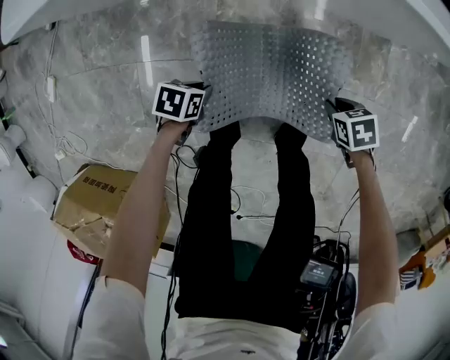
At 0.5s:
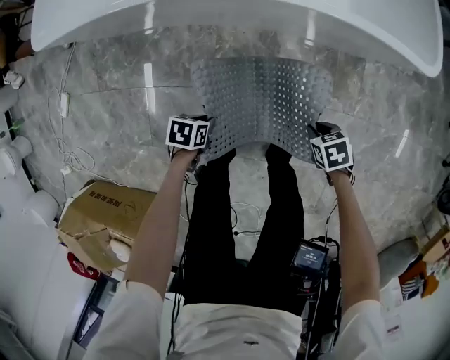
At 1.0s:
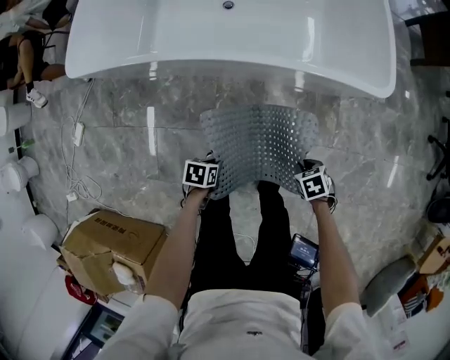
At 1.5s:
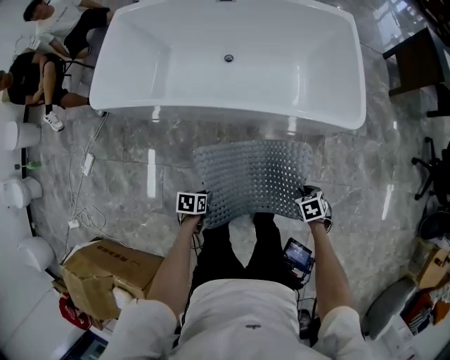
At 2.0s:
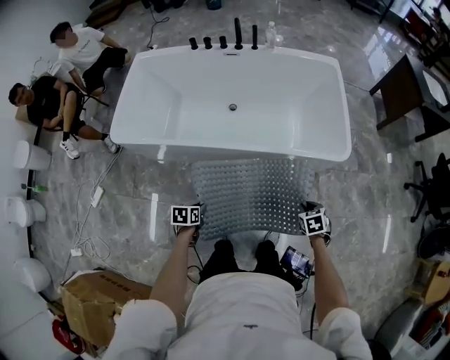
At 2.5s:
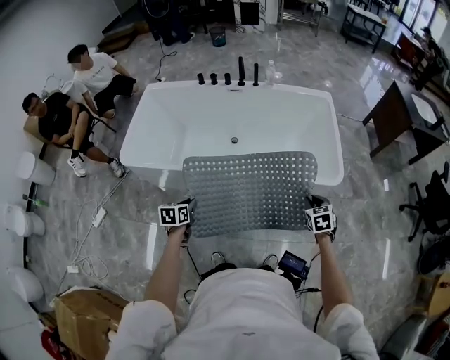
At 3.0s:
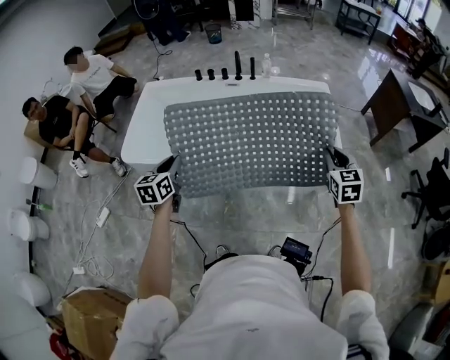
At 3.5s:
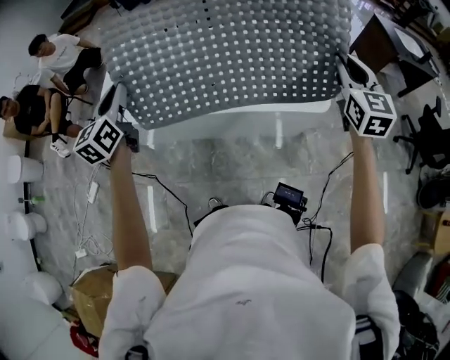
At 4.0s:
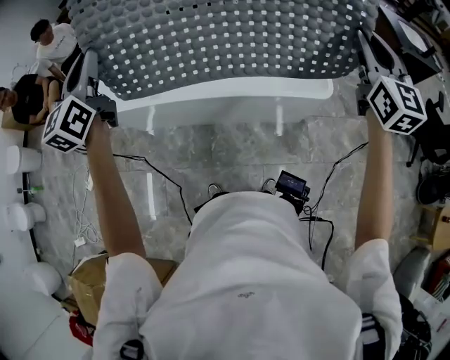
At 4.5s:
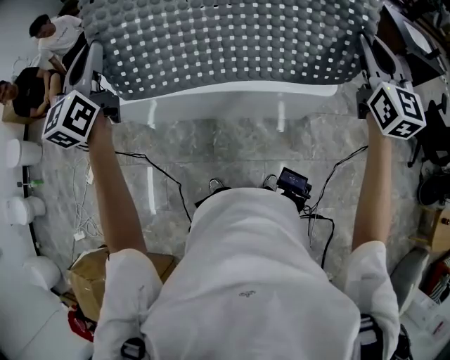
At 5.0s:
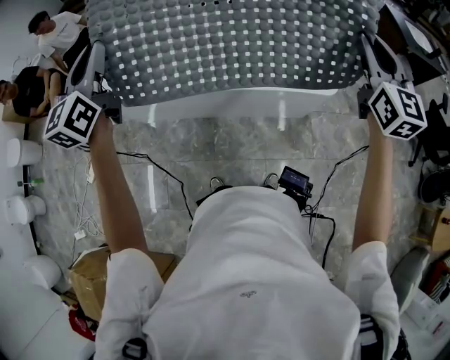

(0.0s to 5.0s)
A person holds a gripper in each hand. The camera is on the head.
0.0s - 2.5s: Both grippers move upward, roughly 50 cm. The left gripper turns by about 40 degrees, while the right gripper changes its angle by some 40 degrees.
2.5s - 5.0s: Both grippers travel together upward, roughly 40 cm. The right gripper angles its fingers upward, by some 50 degrees; the left gripper points its fingers approximately 50 degrees further upward.

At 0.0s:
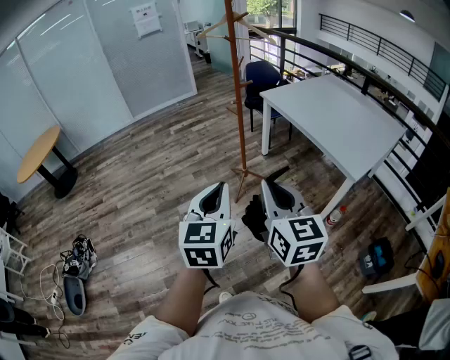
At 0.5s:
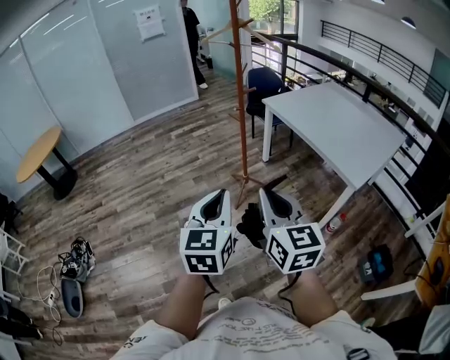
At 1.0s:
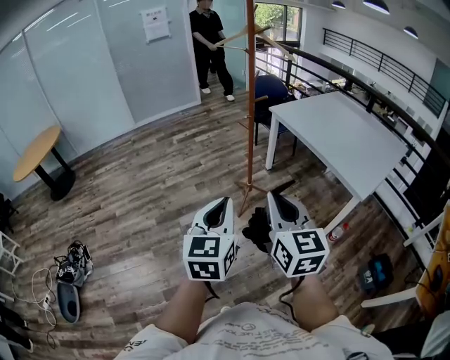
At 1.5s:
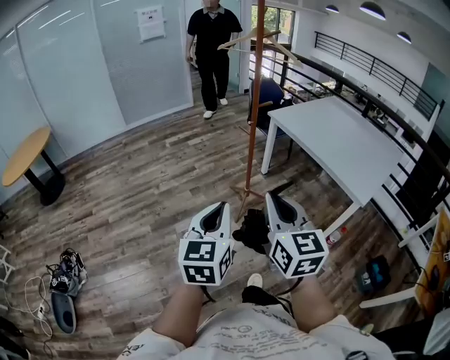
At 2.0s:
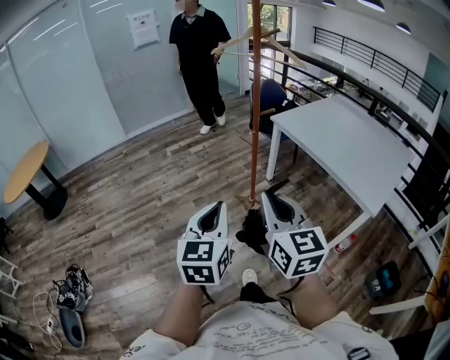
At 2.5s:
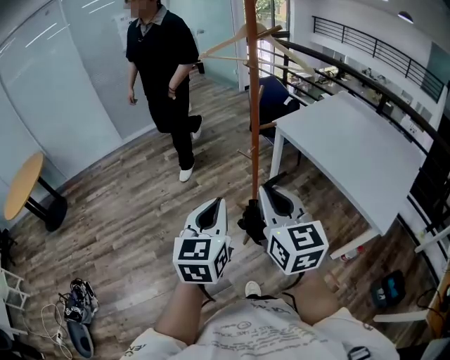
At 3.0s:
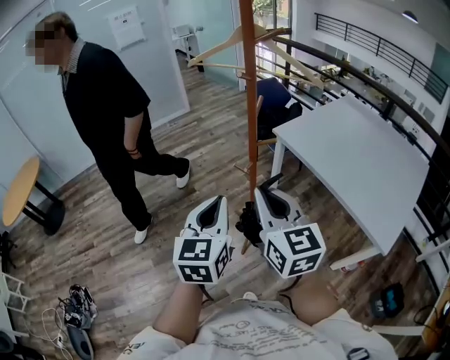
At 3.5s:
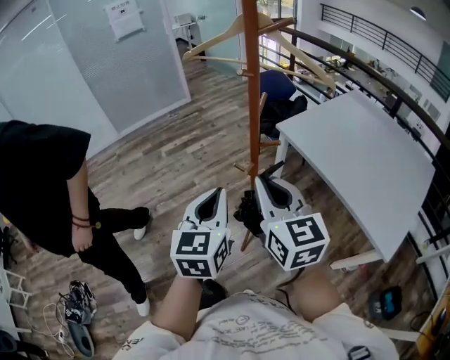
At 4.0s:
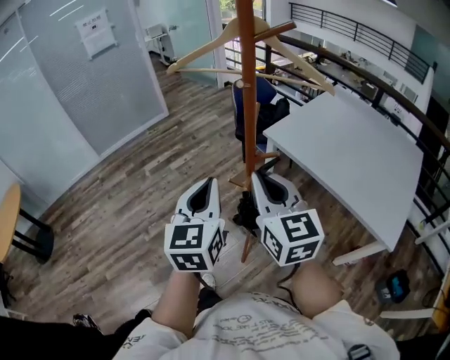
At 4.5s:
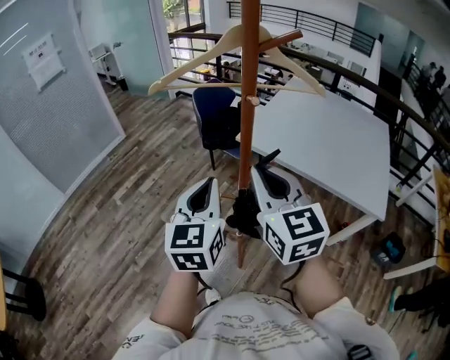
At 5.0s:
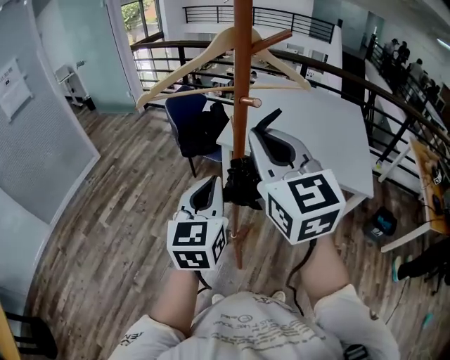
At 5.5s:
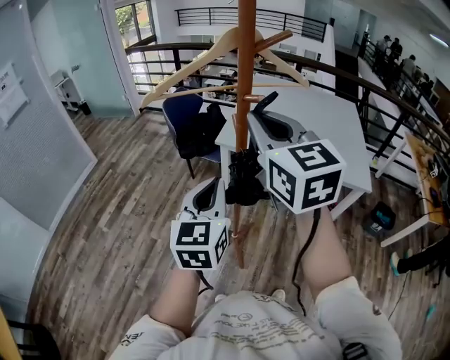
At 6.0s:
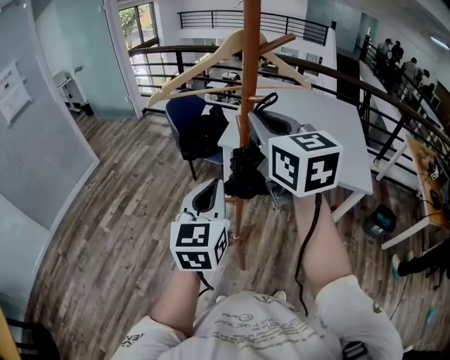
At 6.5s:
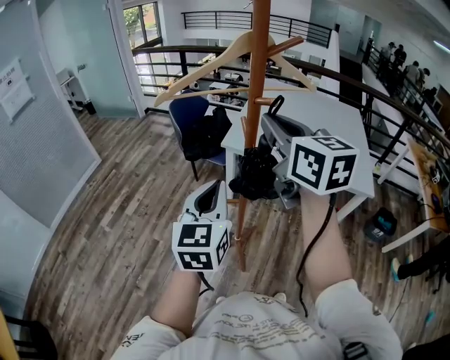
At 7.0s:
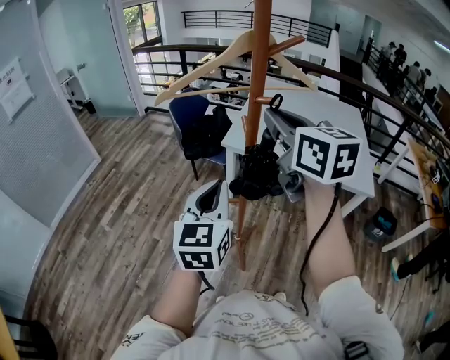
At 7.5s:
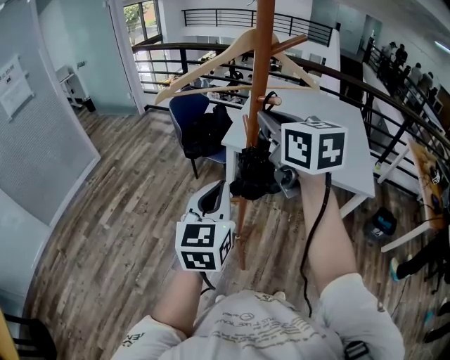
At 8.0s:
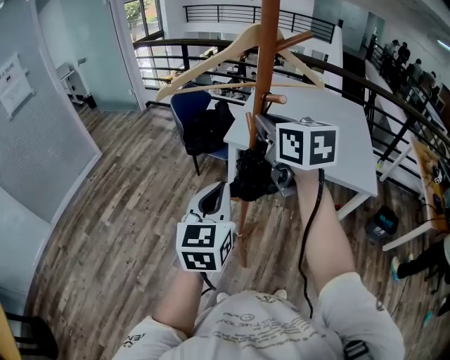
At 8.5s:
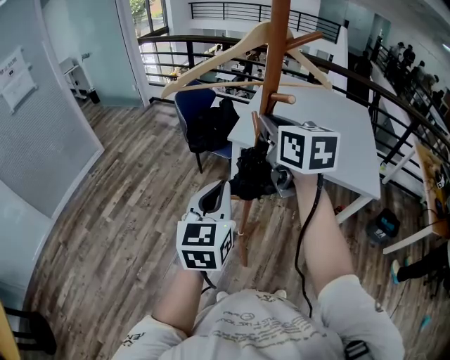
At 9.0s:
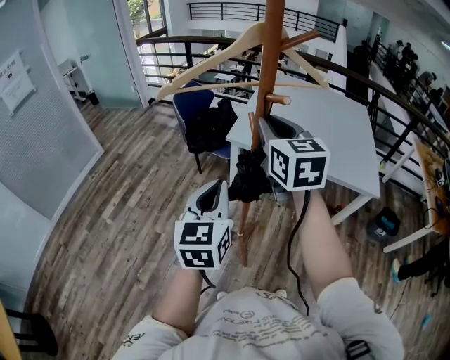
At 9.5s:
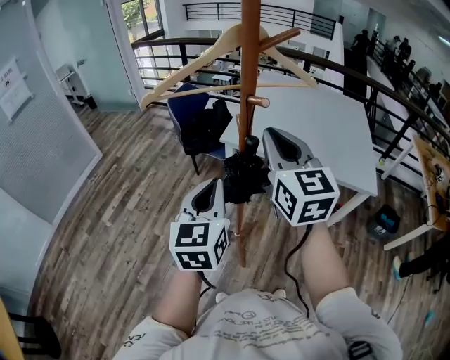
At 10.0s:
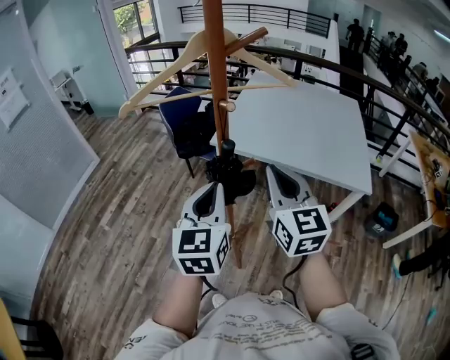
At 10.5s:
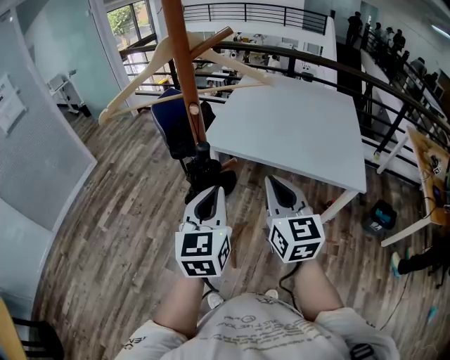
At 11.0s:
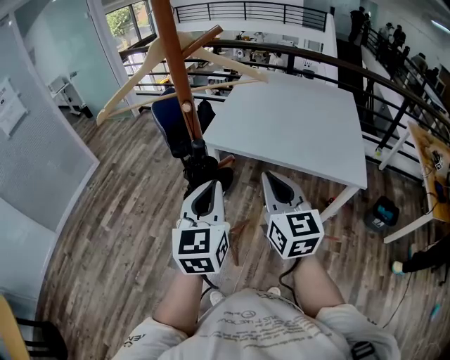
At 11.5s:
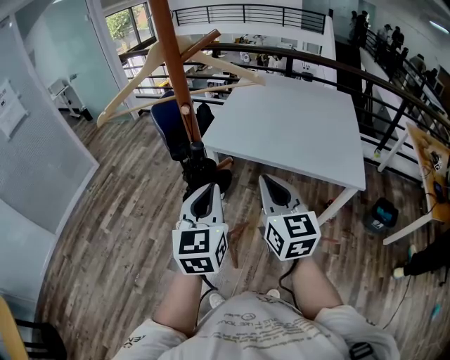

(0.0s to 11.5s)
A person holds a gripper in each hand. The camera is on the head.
0.0s - 2.0s: The grippers both shift forward and to the left by some 25 cm.
2.0s - 4.0s: Both grippers are carried forward, roughly 40 cm.
4.0s - 6.0s: The right gripper shifts by about 15 cm, and swivels about 30 degrees. The left gripper moves approximately 10 cm, and turns by about 30 degrees.
6.0s - 7.5s: The grippers stay close to where they were, moving slightly.
7.5s - 9.5s: The right gripper ends up roughly 5 cm from where it was.
9.5s - 11.5s: The left gripper heads to the right, covering roughly 10 cm; the right gripper travels to the right, downward and backward by some 15 cm.

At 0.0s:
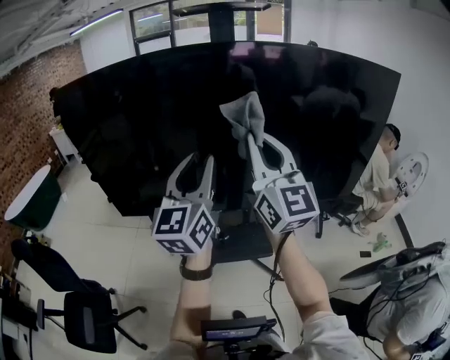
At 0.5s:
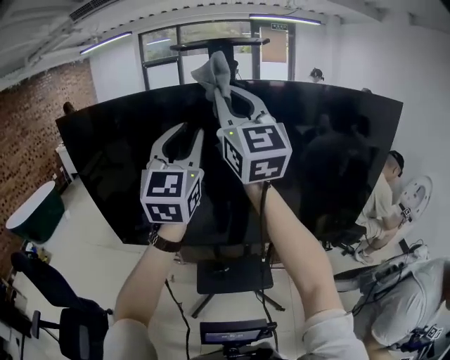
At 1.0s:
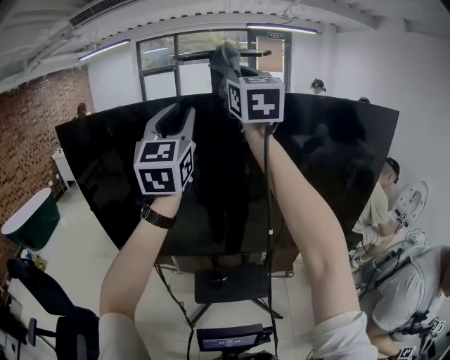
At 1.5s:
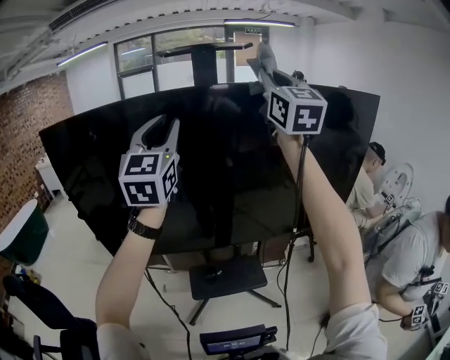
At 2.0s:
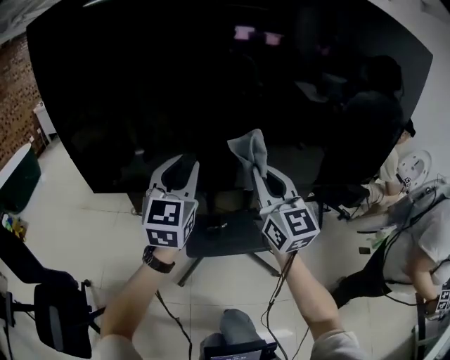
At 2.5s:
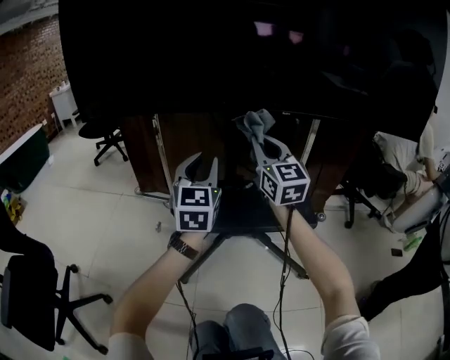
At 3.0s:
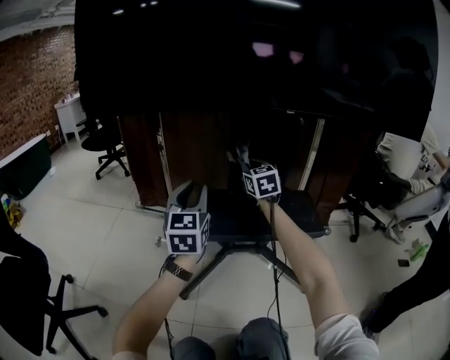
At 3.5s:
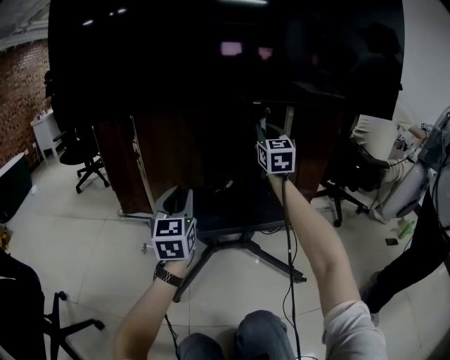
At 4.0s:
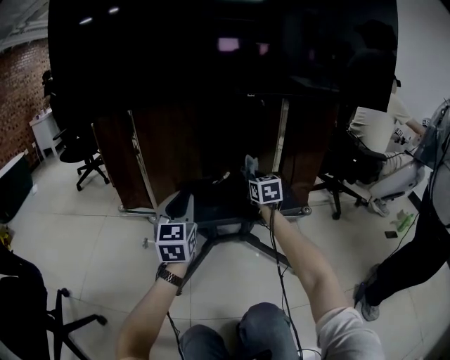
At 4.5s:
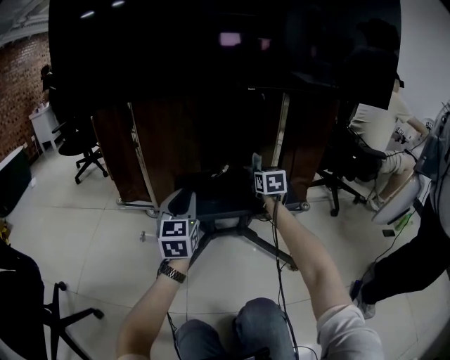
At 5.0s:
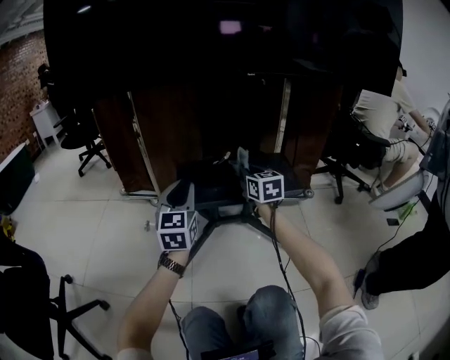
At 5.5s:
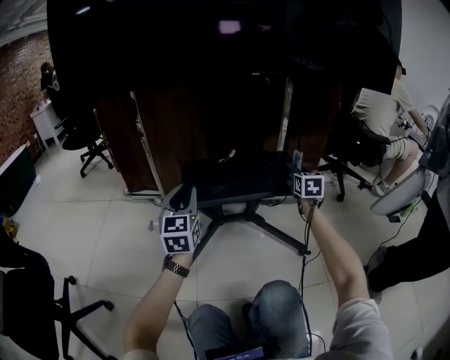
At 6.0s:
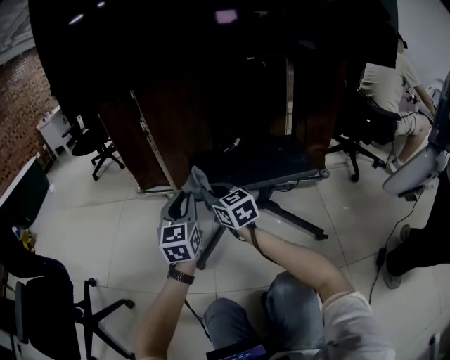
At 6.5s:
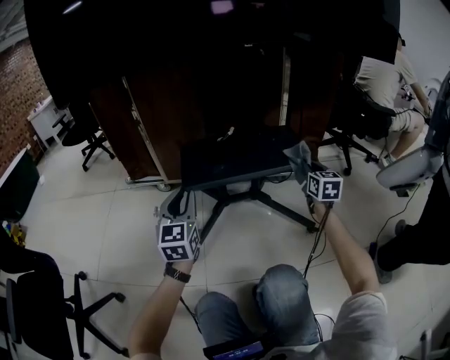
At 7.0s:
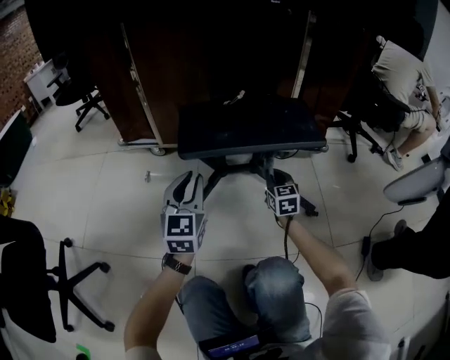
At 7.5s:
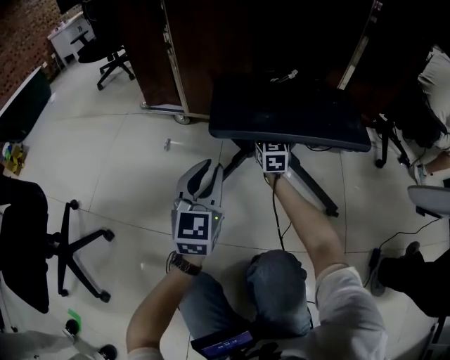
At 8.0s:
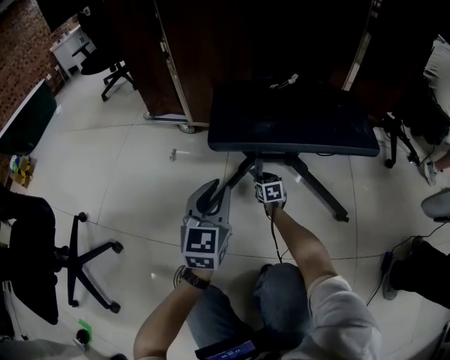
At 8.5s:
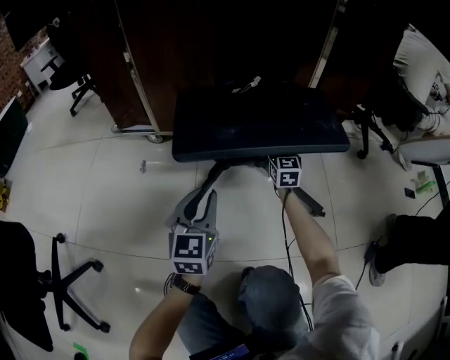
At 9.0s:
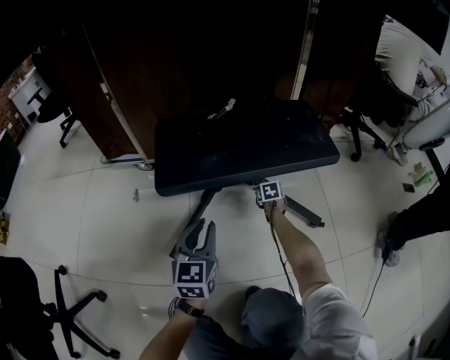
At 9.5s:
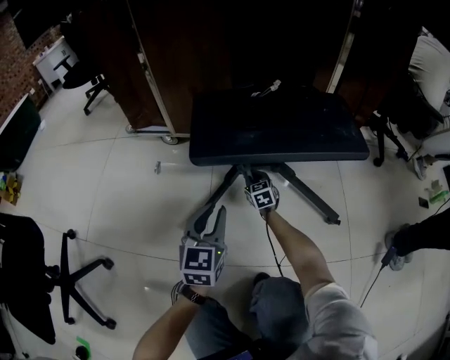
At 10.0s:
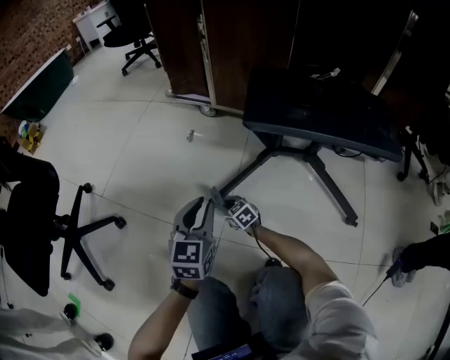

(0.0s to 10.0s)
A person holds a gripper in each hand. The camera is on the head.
0.0s - 2.0s: Both grippers travel together downward, about 30 cm.
2.0s - 4.0s: The right gripper goes up and down, some 60 cm each way, reversing 2 times, and changes its angle by some 30 degrees, while the left gripper travels downward by some 60 cm.
4.0s - 6.0s: The right gripper moves left and right over some 35 cm, changing direction 2 times, and changes its angle by some 30 degrees, while the left gripper moves downward, some 5 cm.
6.0s - 8.0s: The right gripper moves downward, approximately 50 cm, and swivels approximately 30 degrees. Meanwhile the left gripper moves downward, approximately 20 cm.
8.0s - 10.0s: The left gripper shifts by roughly 15 cm. The right gripper goes up and down, about 25 cm each way, reversing 3 times, and turns by about 40 degrees.
